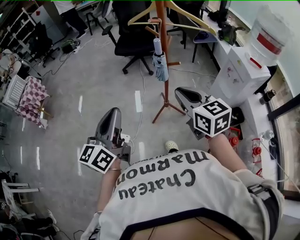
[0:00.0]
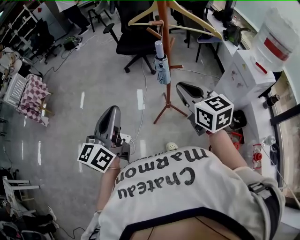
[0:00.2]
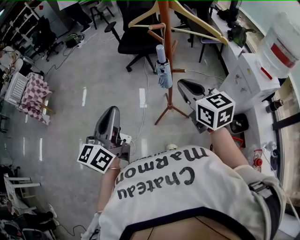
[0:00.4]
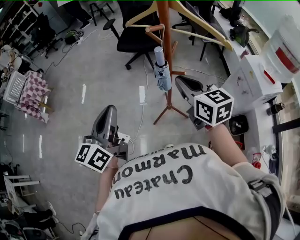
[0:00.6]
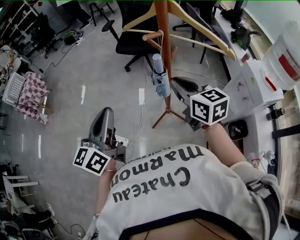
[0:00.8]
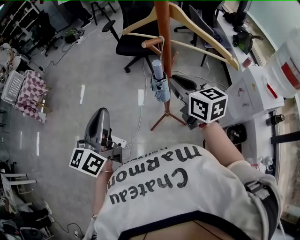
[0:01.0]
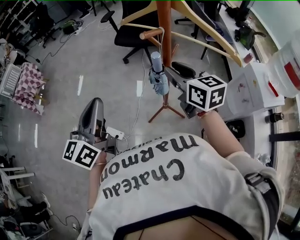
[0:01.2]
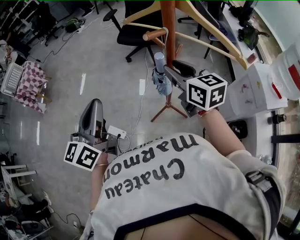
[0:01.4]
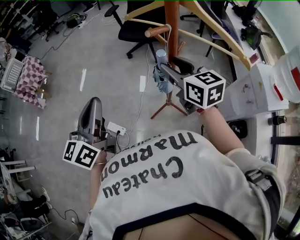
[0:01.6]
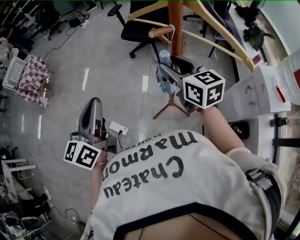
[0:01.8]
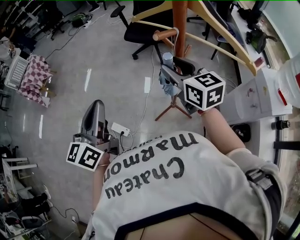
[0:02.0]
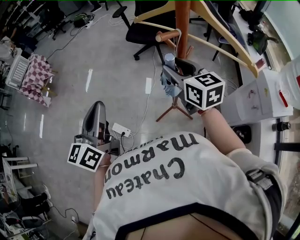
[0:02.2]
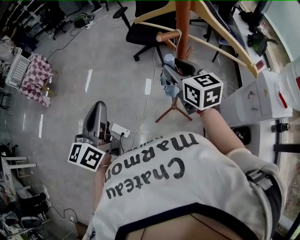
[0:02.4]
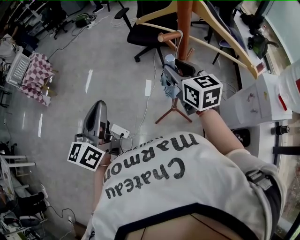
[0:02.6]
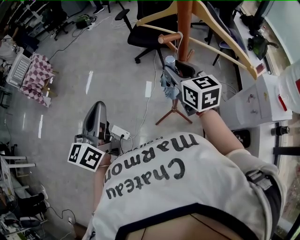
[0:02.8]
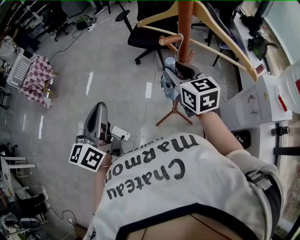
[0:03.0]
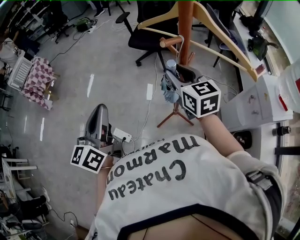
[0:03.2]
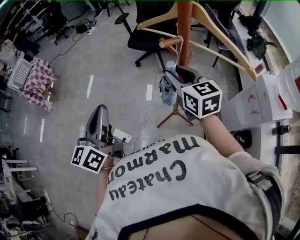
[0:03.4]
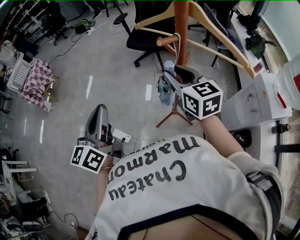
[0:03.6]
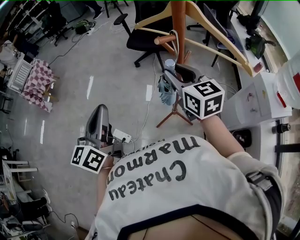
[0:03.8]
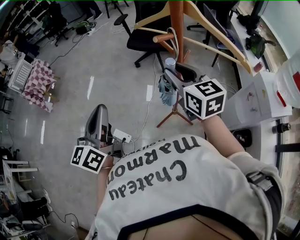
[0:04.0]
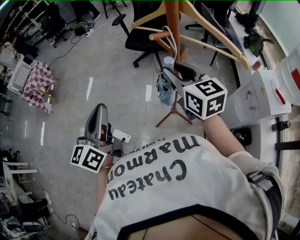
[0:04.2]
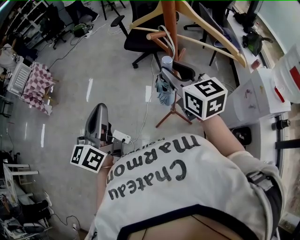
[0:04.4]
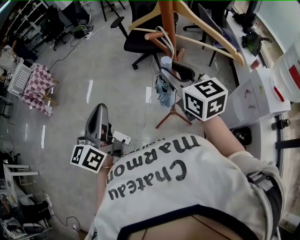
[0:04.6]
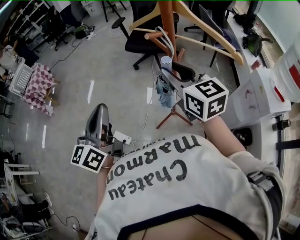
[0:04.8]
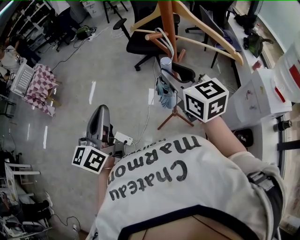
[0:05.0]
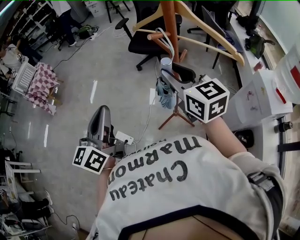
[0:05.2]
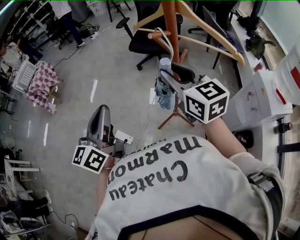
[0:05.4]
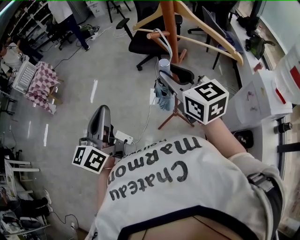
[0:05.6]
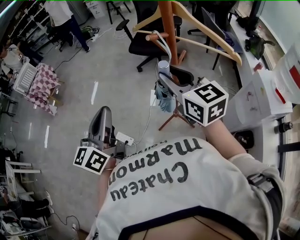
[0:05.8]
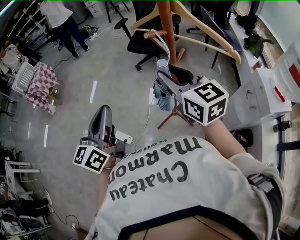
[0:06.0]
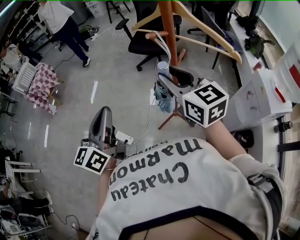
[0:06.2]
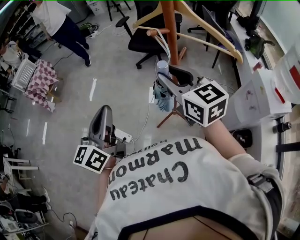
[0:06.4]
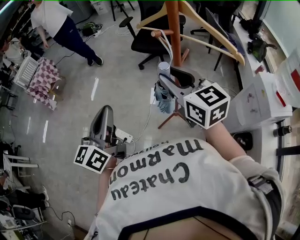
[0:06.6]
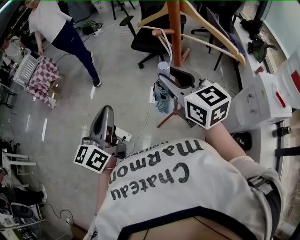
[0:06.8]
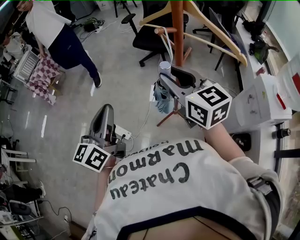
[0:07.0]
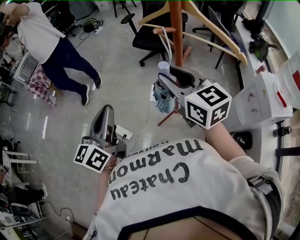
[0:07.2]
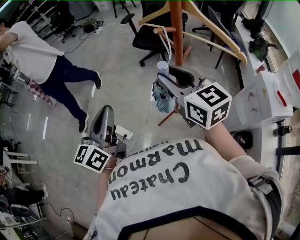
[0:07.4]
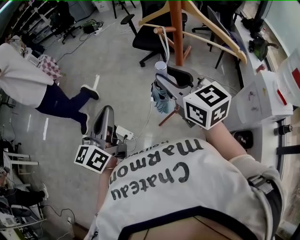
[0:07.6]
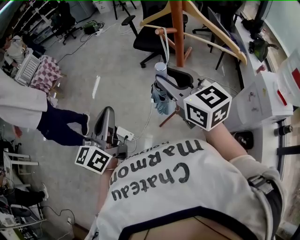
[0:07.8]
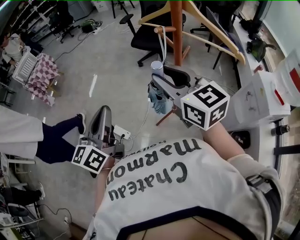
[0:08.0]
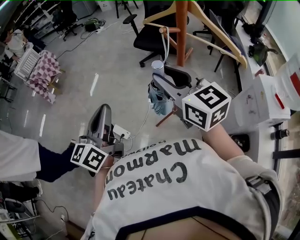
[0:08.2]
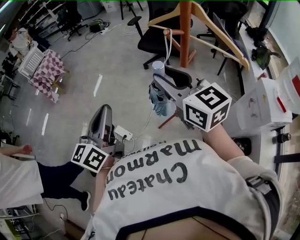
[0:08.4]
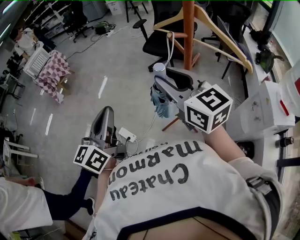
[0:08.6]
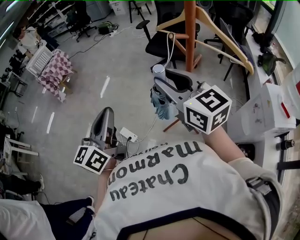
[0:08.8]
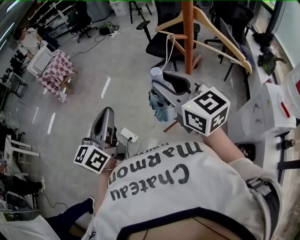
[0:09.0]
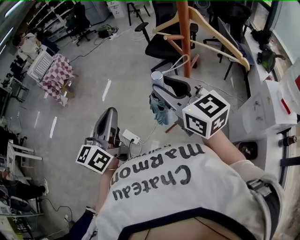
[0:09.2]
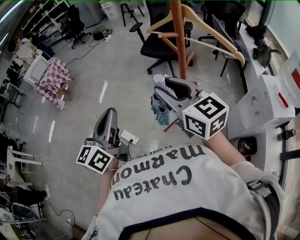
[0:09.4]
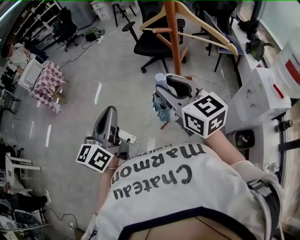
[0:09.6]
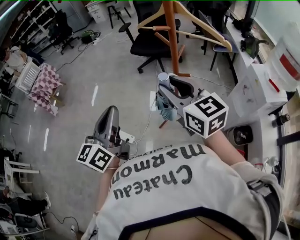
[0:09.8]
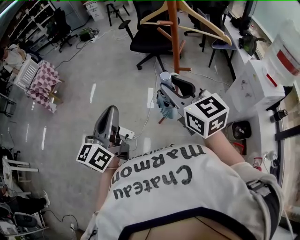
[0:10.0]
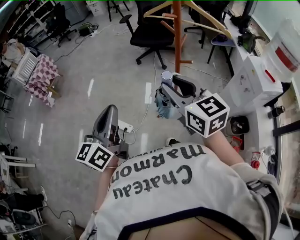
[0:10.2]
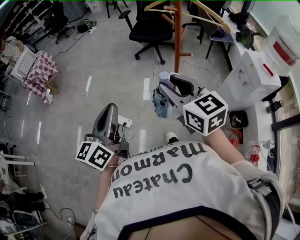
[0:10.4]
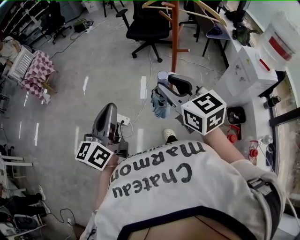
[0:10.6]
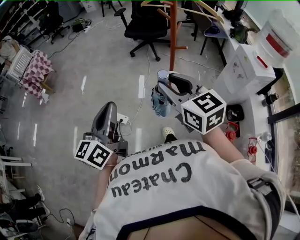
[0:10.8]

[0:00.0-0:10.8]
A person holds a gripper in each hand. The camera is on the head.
0:00.0 to 0:01.6: Both grippers move forward, some 25 cm. The right gripper opens up.
0:01.6 to 0:03.0: The grippers make only small movements.
0:03.0 to 0:04.6: The right gripper moves backward and upward, some 10 cm.
0:04.6 to 0:06.2: There are only small adjustments of the grippers.
0:06.2 to 0:07.8: There are only small adjustments of the grippers.
0:07.8 to 0:09.2: The right gripper ends up approximately 5 cm from where it was.
0:09.2 to 0:10.8: The left gripper moves backward and to the left, about 15 cm; the right gripper shifts roughly 20 cm backward.

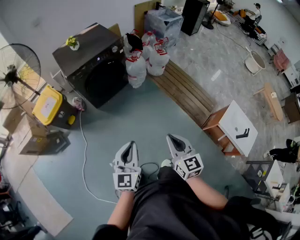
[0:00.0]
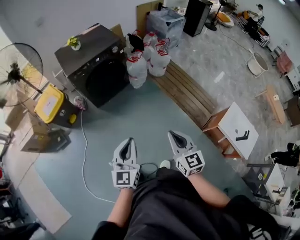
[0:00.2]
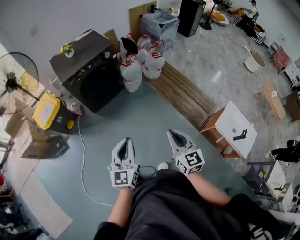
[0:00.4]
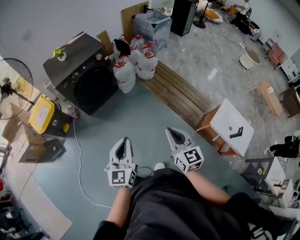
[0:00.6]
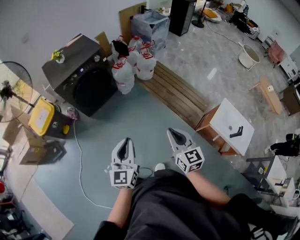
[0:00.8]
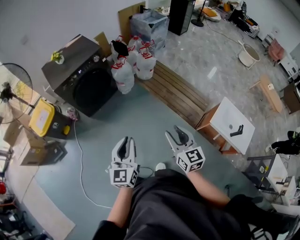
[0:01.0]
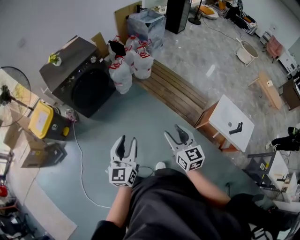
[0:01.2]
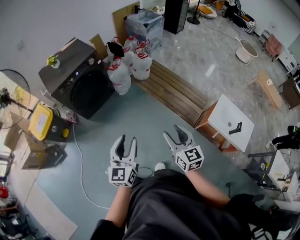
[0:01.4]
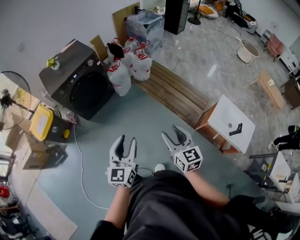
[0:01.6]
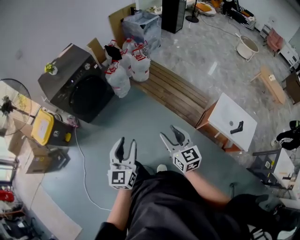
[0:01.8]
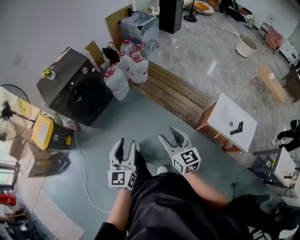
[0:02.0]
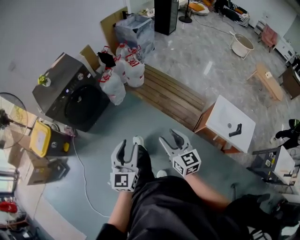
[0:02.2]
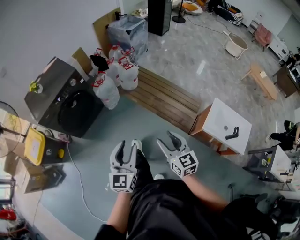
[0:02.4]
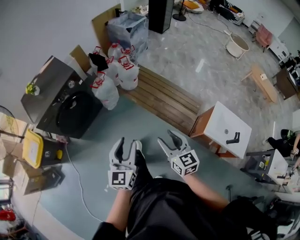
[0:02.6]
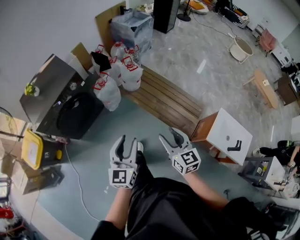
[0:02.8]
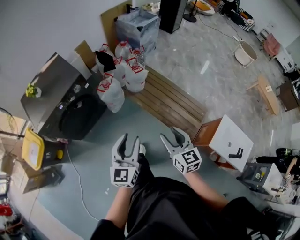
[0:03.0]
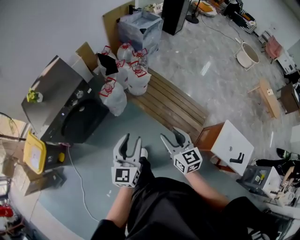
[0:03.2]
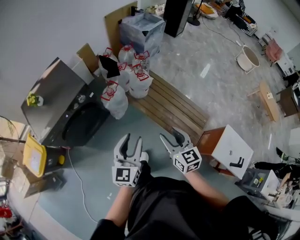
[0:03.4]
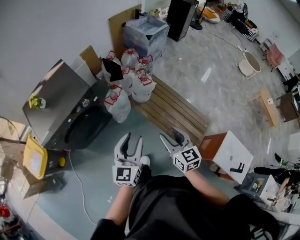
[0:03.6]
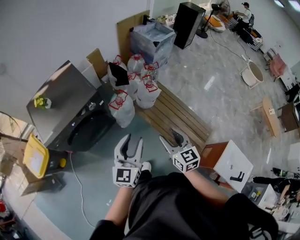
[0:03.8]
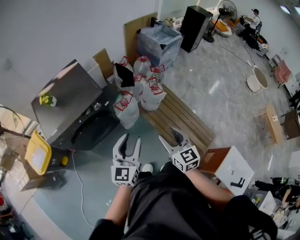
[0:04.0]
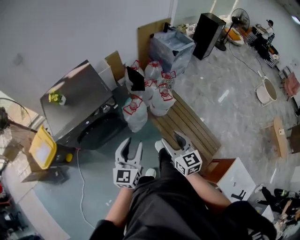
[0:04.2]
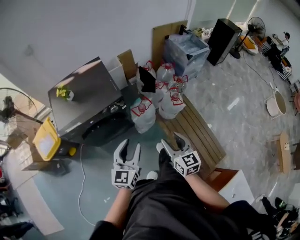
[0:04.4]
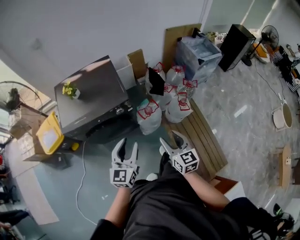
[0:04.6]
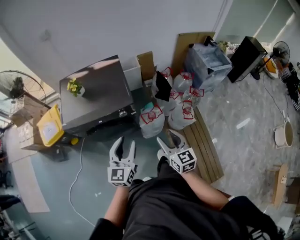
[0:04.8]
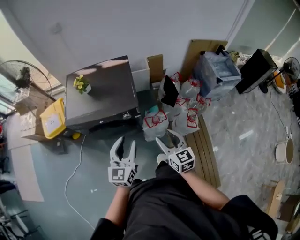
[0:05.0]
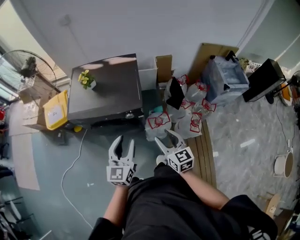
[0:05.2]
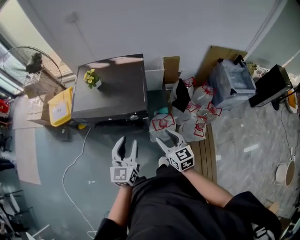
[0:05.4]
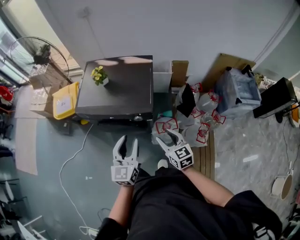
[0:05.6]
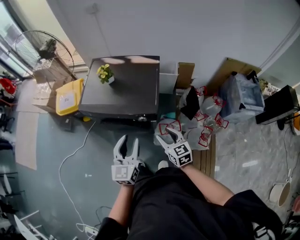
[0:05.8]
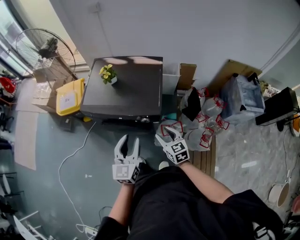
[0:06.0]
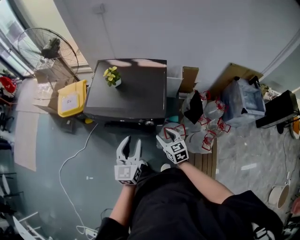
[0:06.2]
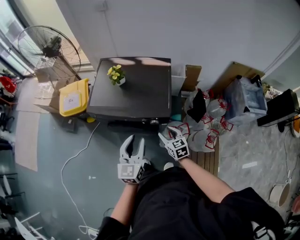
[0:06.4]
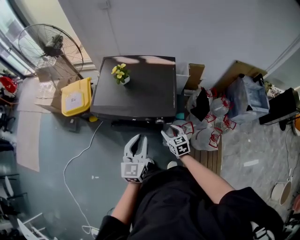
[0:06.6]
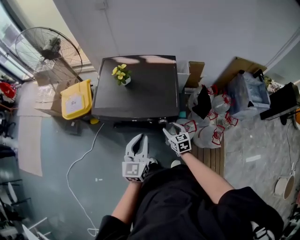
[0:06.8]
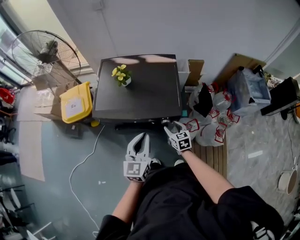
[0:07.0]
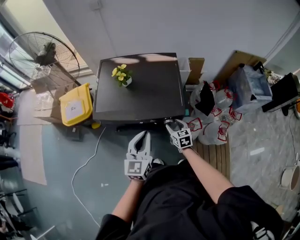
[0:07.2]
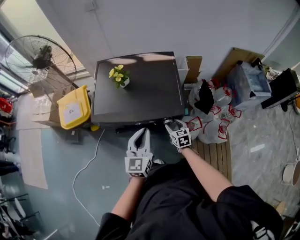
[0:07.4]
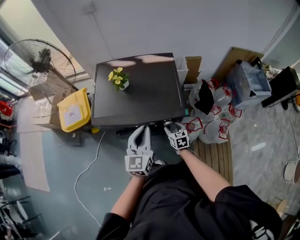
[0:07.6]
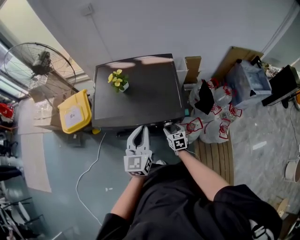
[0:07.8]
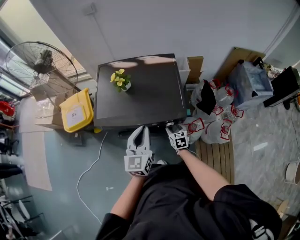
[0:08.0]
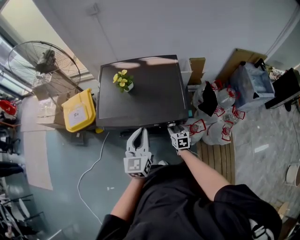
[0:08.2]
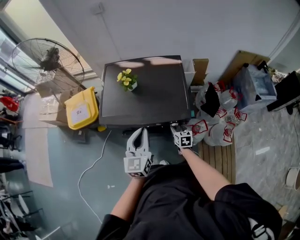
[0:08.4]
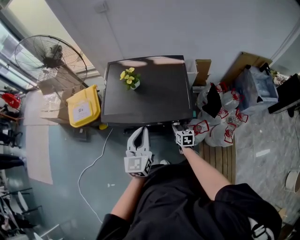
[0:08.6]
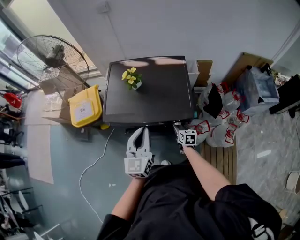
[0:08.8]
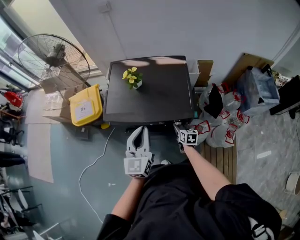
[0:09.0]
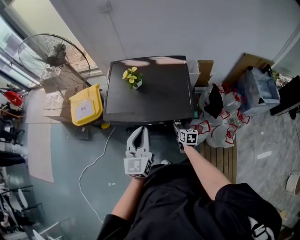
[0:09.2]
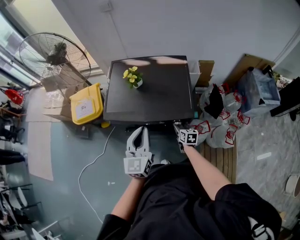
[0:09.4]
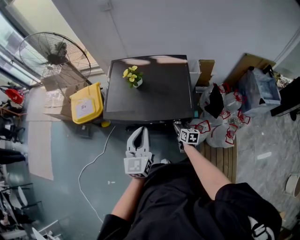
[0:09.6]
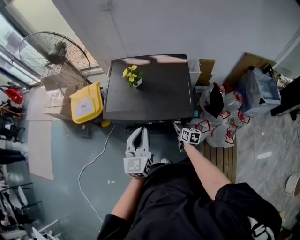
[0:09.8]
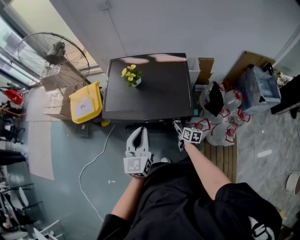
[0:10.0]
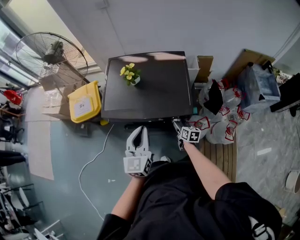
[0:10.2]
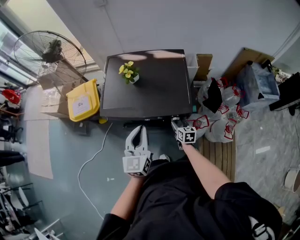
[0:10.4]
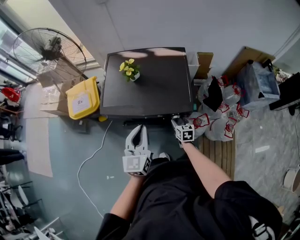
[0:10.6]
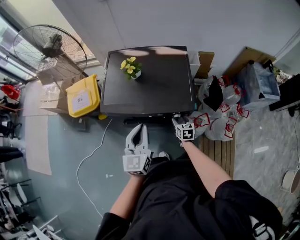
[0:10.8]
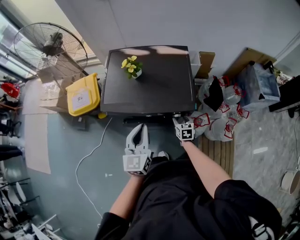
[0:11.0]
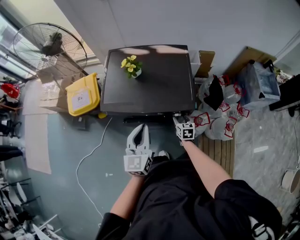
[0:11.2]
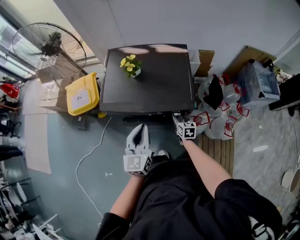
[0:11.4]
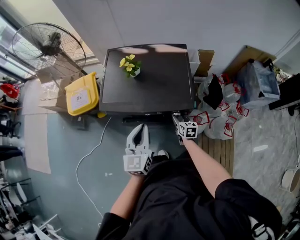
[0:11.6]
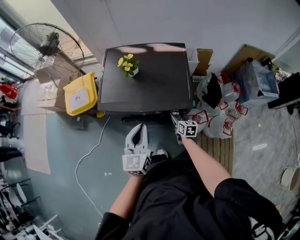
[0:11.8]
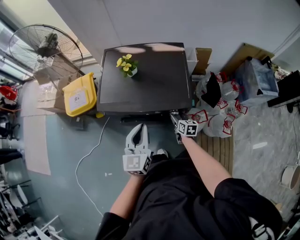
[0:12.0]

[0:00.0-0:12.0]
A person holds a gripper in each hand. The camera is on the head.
0:00.0 to 0:01.6: Both grippers travel together to the right, about 20 cm. The left gripper opens up, while the right gripper opens.
0:01.6 to 0:03.0: The two grippers go about 30 cm forward.
0:03.0 to 0:04.4: The grippers both shift forward and to the left by about 30 cm. The right gripper swivels approximately 20 degrees.
0:04.4 to 0:06.0: The left gripper ends up roughly 20 cm from where it was, and swivels approximately 40 degrees; the right gripper ends up approximately 30 cm from where it was, and swivels roughly 40 degrees.
0:06.0 to 0:07.6: The left gripper moves forward and to the left, approximately 15 cm, and closes up. The right gripper shifts roughly 20 cm downward, forward and to the left, and turns by approximately 20 degrees.
0:07.6 to 0:09.0: The left gripper changes place by about 5 cm.
0:09.0 to 0:12.0: The grippers stay close to where they were, moving slightly.

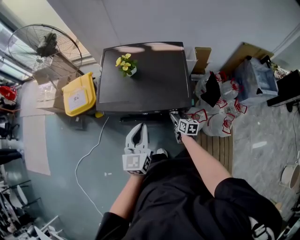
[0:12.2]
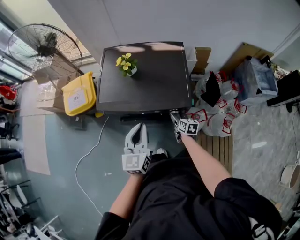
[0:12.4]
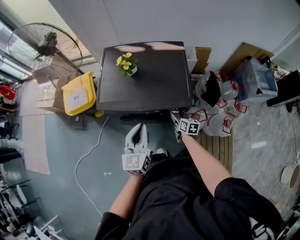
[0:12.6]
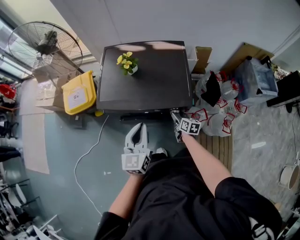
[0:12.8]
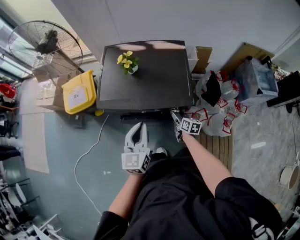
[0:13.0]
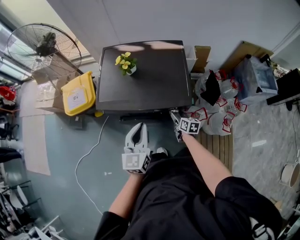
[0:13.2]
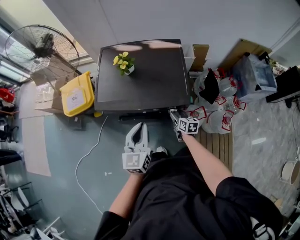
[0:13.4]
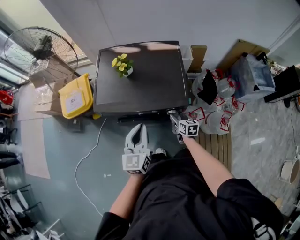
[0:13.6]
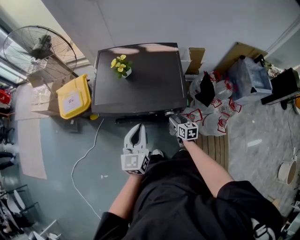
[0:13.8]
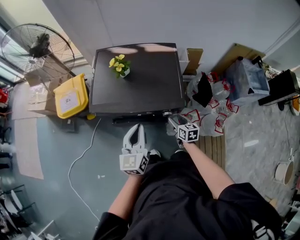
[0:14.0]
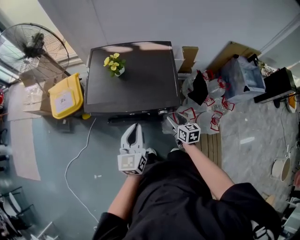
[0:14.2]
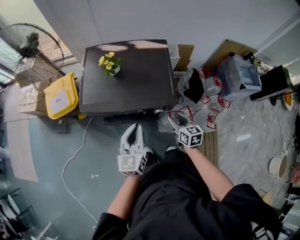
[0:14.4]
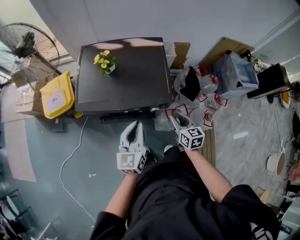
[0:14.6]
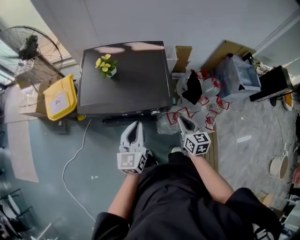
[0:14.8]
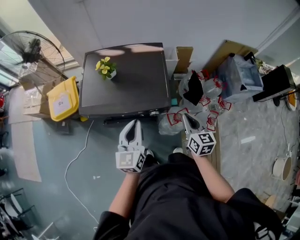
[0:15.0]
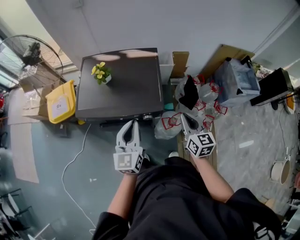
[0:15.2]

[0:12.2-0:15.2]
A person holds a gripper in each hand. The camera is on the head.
0:12.2 to 0:13.8: The grippers stay close to where they were, moving slightly.
0:13.8 to 0:15.2: The right gripper travels upward and to the right by about 30 cm, turns by about 20 degrees, and closes up. The left gripper shifts roughly 10 cm to the right and upward.
